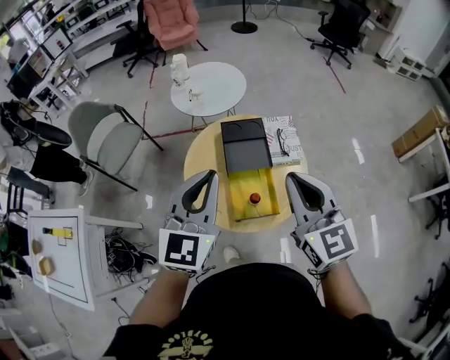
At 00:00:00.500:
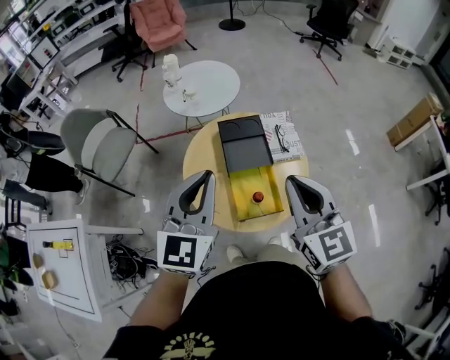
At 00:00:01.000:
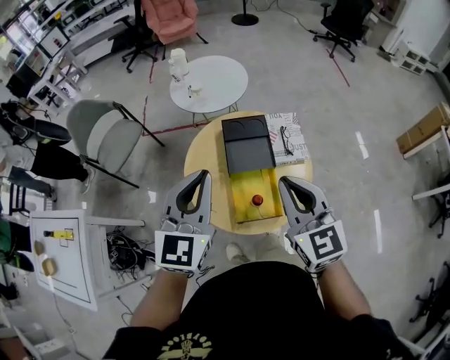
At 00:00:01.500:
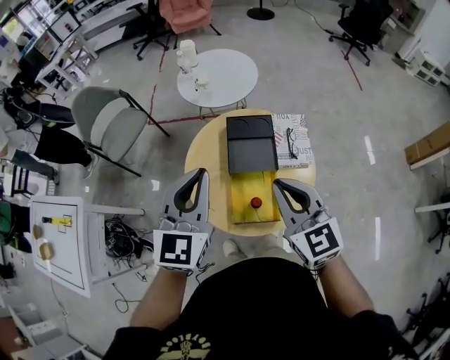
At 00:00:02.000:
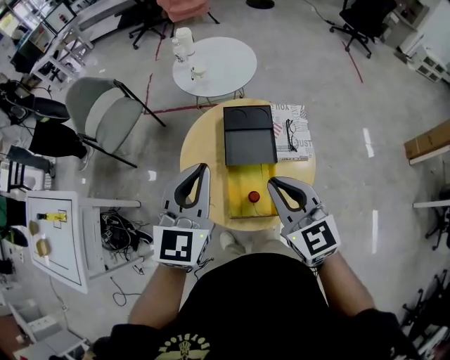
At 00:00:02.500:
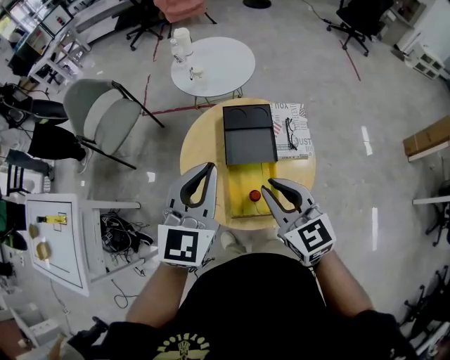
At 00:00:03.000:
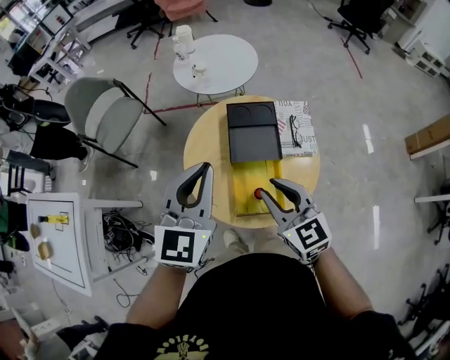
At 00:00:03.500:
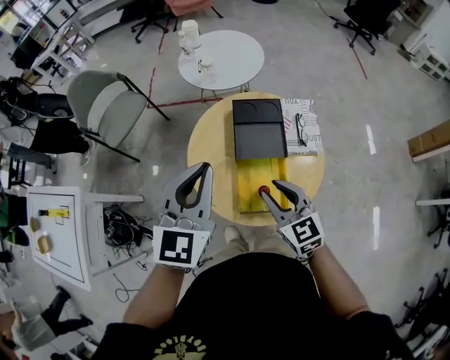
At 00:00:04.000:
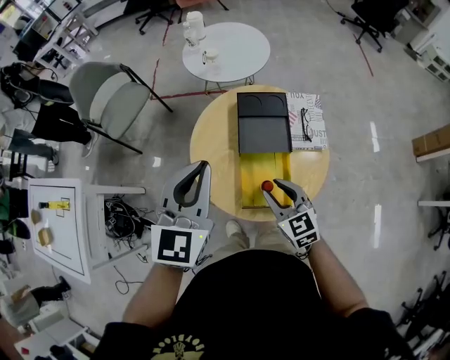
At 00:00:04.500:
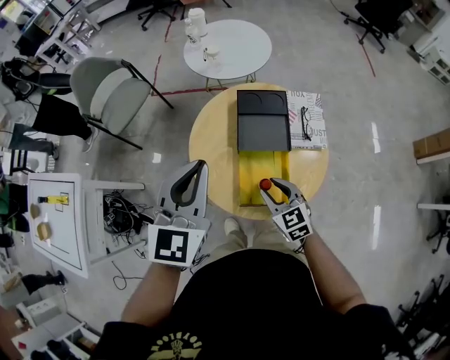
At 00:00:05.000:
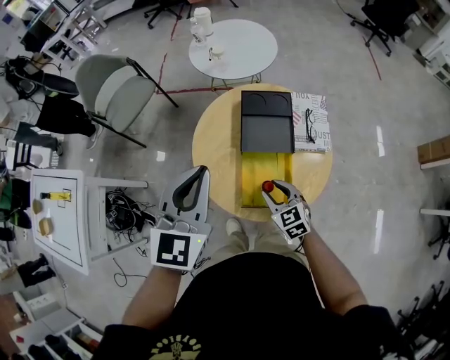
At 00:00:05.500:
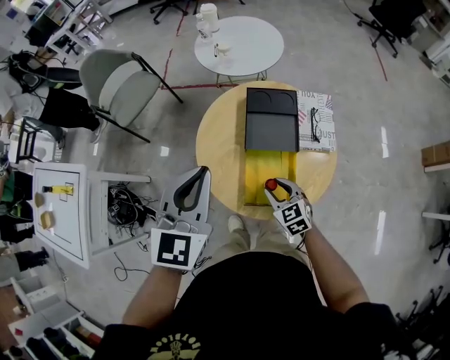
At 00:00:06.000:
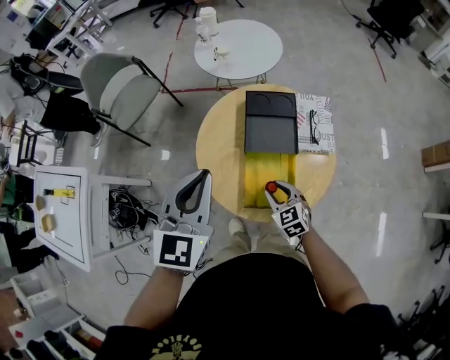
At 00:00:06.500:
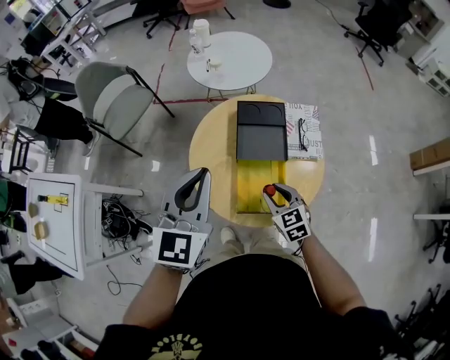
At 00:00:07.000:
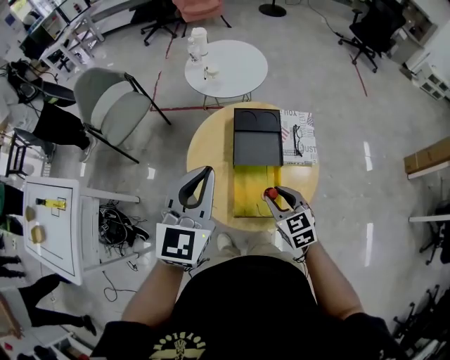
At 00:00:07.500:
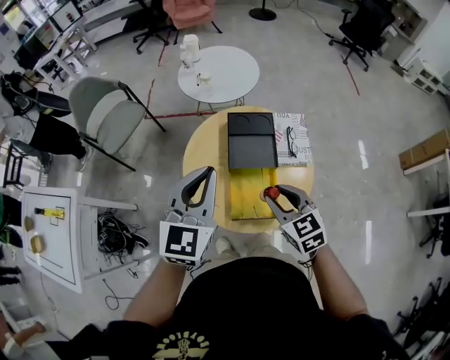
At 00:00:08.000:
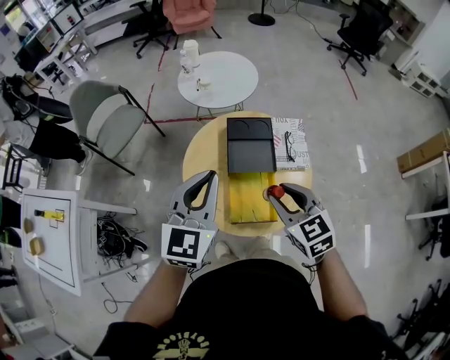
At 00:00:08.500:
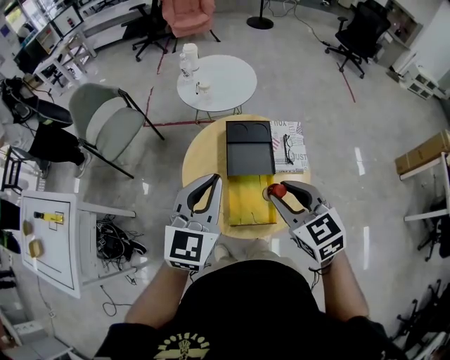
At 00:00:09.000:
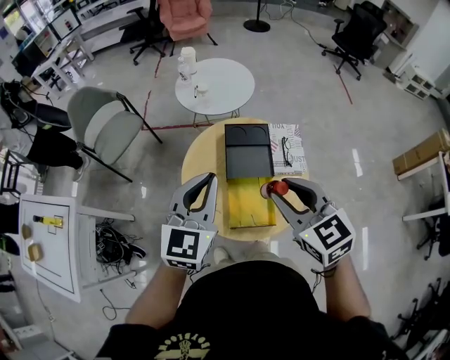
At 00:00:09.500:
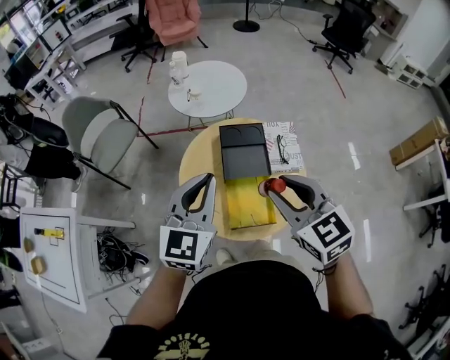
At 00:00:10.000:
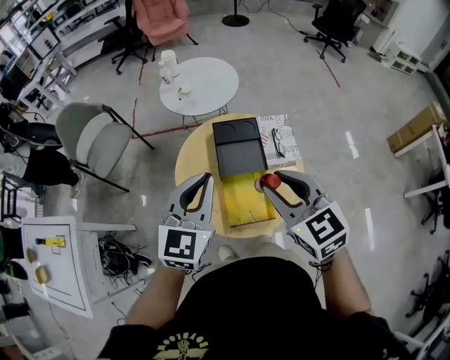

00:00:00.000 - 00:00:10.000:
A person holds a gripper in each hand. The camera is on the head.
00:00:00.000 - 00:00:02.000: The left gripper is displaced forward and downward by about 10 cm, while the right gripper is displaced downward and forward by about 10 cm.
00:00:02.000 - 00:00:04.000: The right gripper shifts roughly 15 cm downward, and opens up.
00:00:04.000 - 00:00:06.000: The right gripper travels downward by about 10 cm.
00:00:06.000 - 00:00:08.000: The right gripper shifts some 25 cm upward.
00:00:08.000 - 00:00:10.000: The right gripper goes roughly 10 cm upward.

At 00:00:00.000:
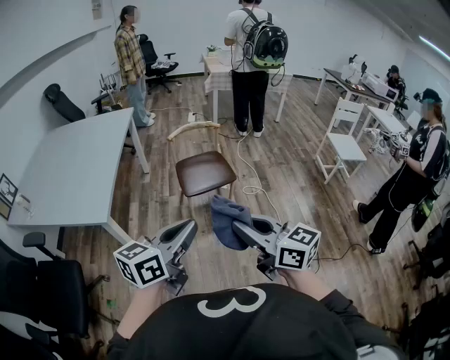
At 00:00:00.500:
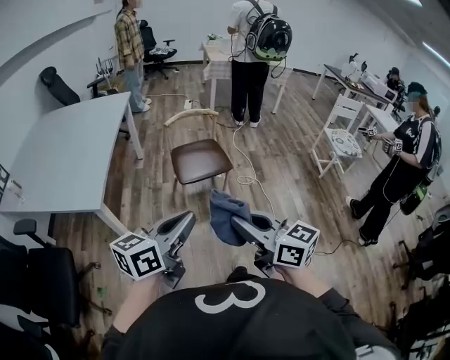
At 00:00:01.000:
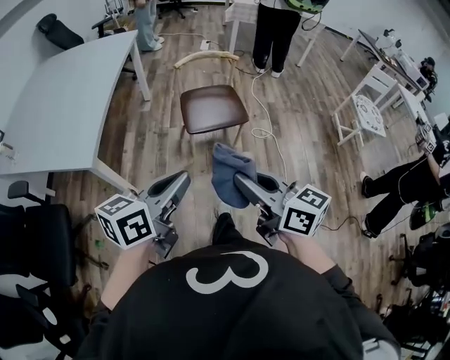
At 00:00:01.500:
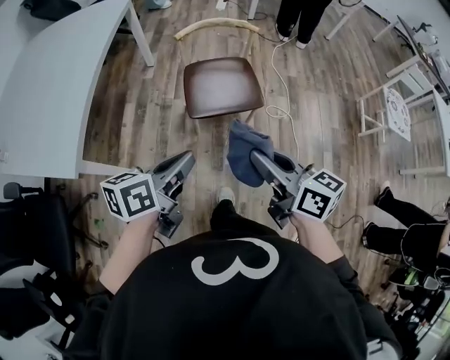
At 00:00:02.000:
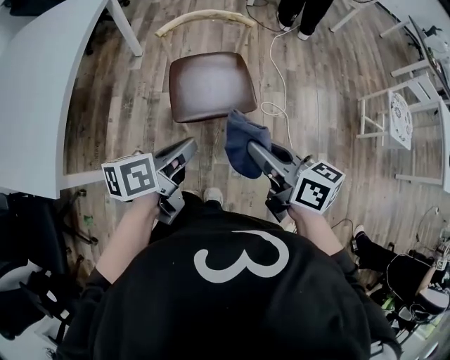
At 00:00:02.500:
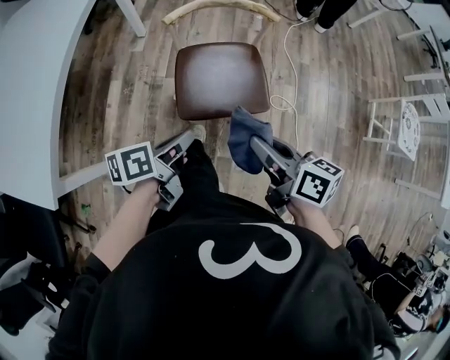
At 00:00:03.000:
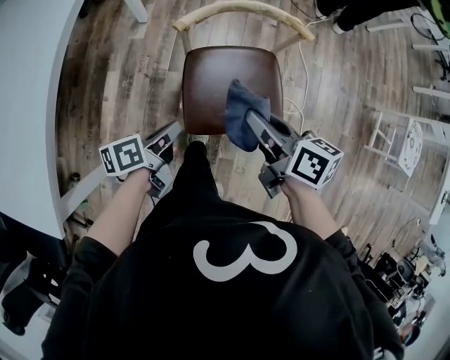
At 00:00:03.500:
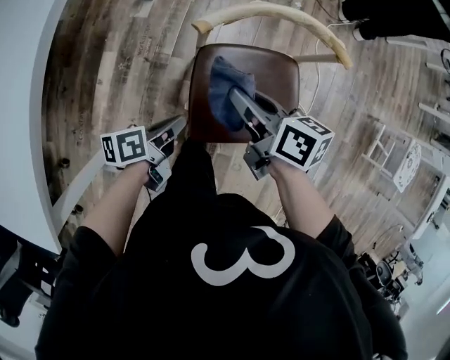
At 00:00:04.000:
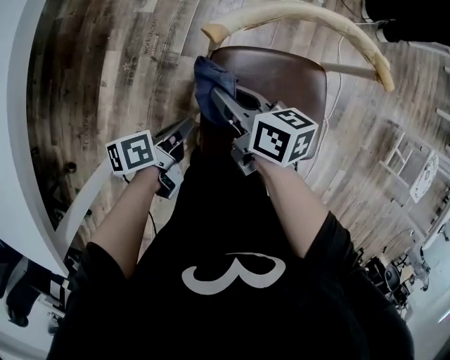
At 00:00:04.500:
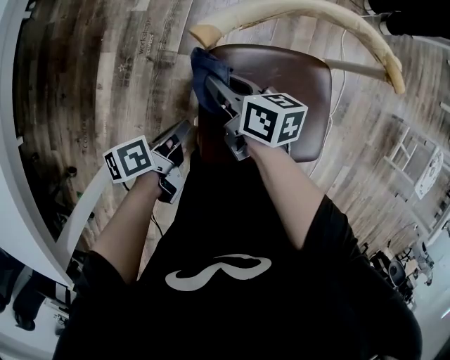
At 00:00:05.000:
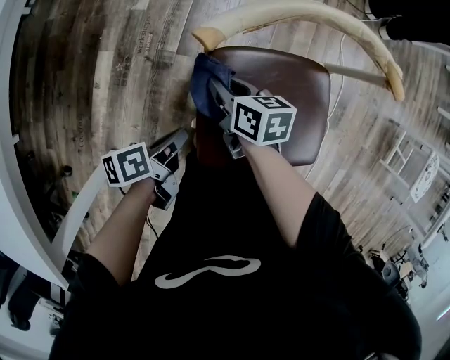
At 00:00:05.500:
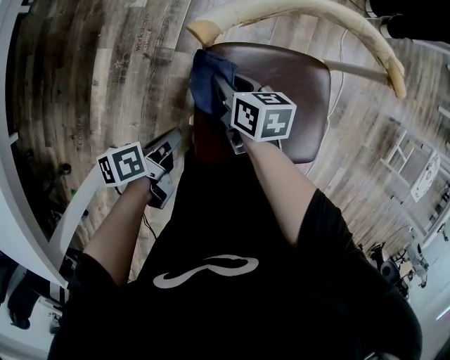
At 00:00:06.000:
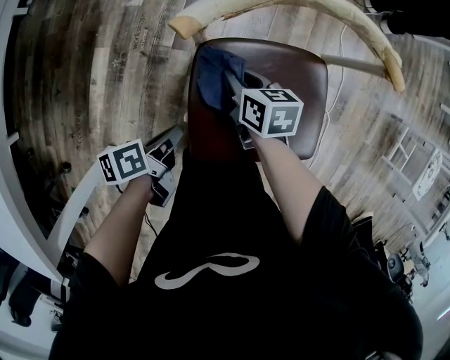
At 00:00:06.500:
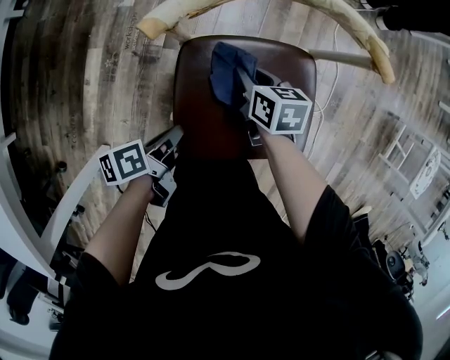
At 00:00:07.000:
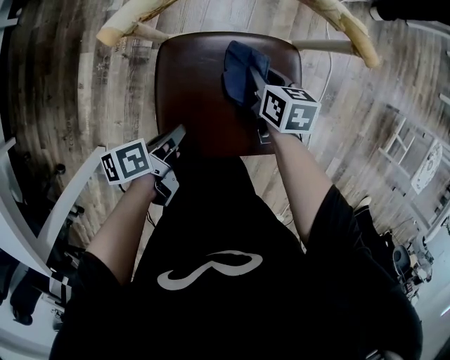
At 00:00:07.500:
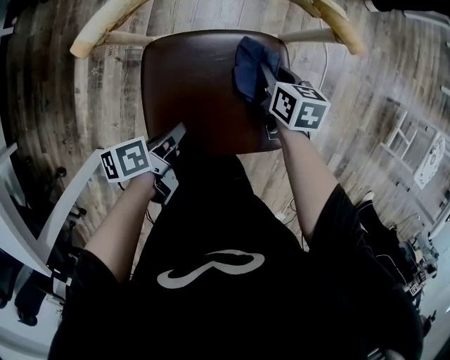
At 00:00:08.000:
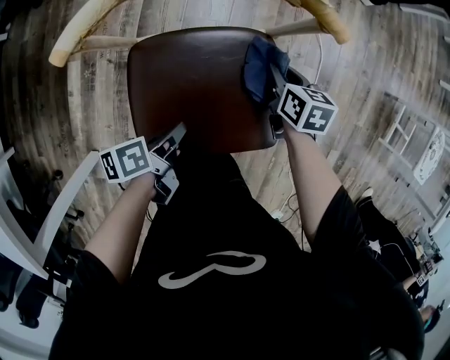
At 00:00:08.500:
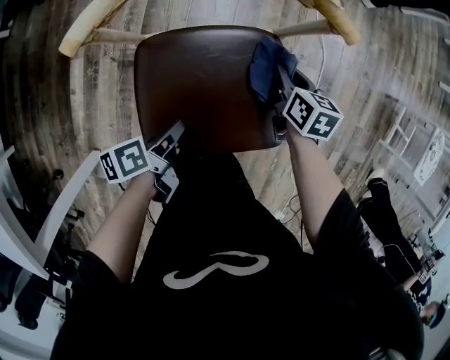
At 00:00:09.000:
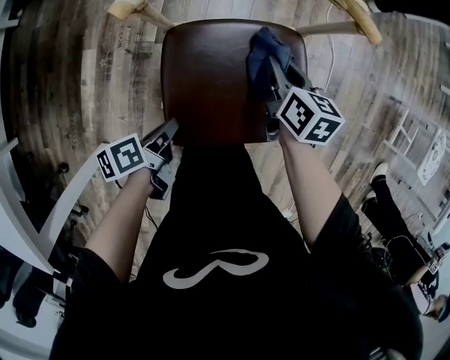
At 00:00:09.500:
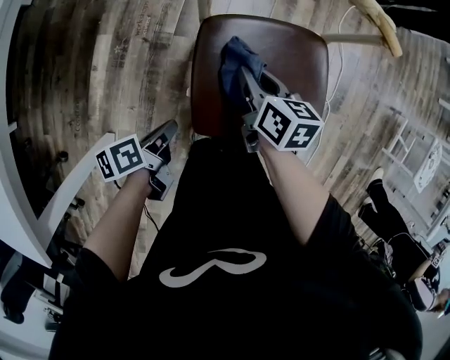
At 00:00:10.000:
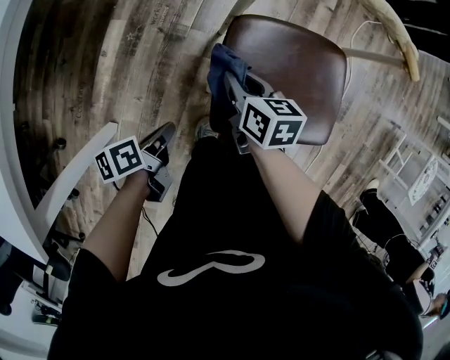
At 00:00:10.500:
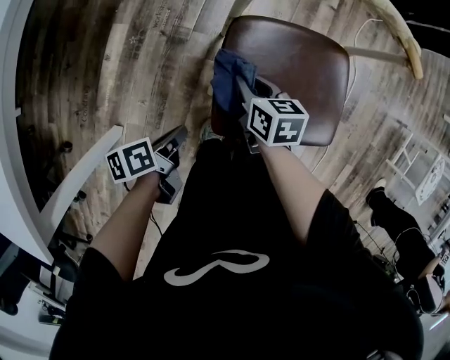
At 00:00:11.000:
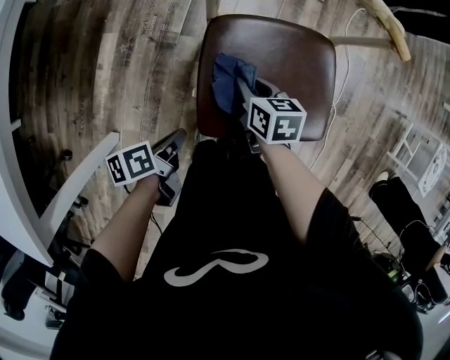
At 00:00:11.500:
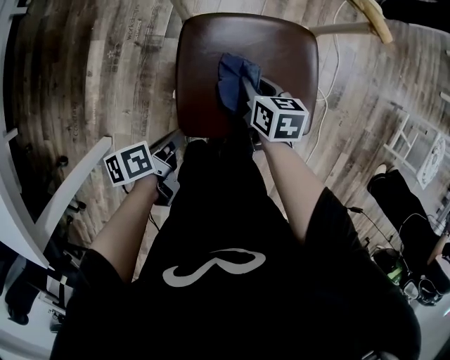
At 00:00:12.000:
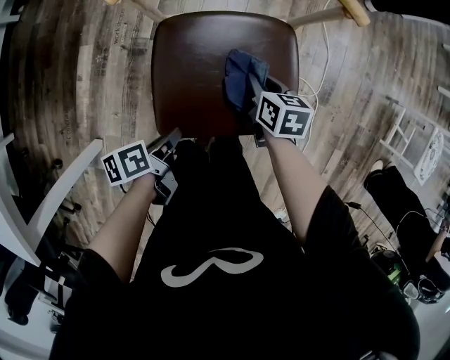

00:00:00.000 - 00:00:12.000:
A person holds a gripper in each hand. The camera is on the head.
00:00:00.000 - 00:00:02.000: The right gripper moves some 40 cm, and turns by roughly 30 degrees.
00:00:02.000 - 00:00:04.000: The right gripper shifts by some 50 cm.
00:00:04.000 - 00:00:06.000: The right gripper travels downward by about 10 cm.
00:00:06.000 - 00:00:08.000: The right gripper ends up about 25 cm from where it was.
00:00:08.000 - 00:00:10.000: The right gripper shifts by some 35 cm.
00:00:10.000 - 00:00:12.000: The right gripper ends up roughly 25 cm from where it was.

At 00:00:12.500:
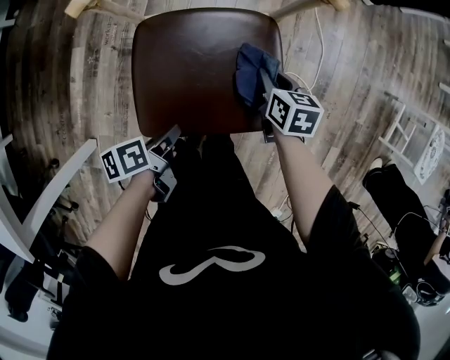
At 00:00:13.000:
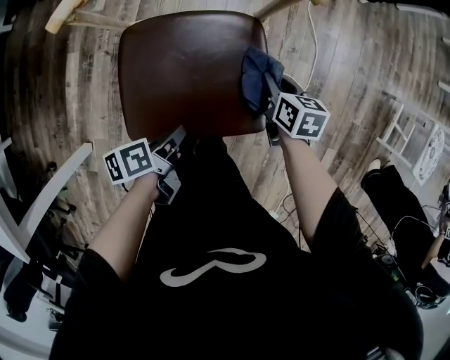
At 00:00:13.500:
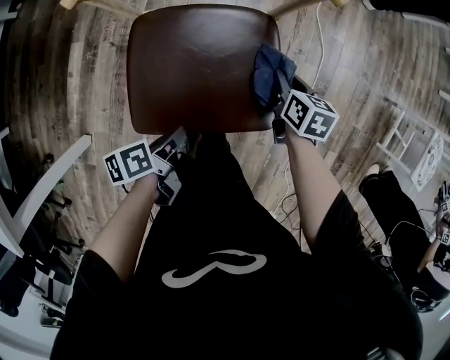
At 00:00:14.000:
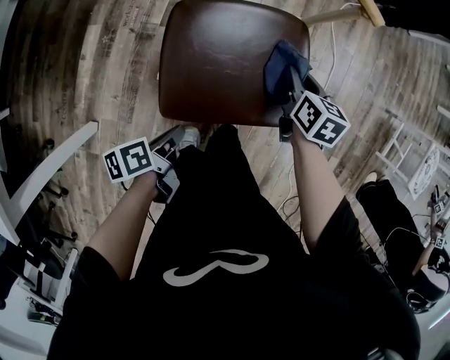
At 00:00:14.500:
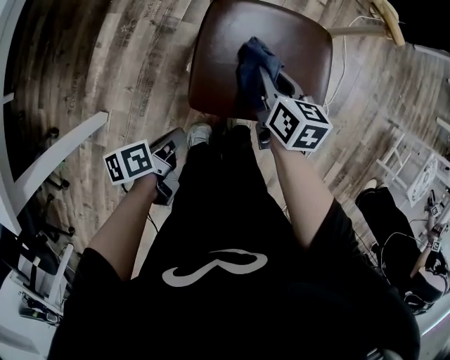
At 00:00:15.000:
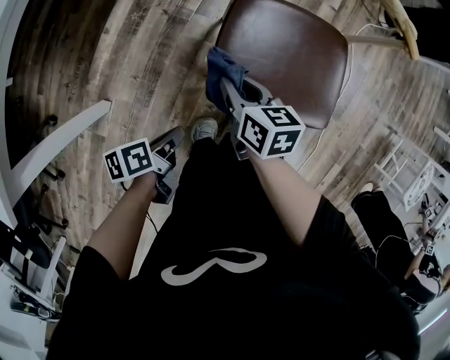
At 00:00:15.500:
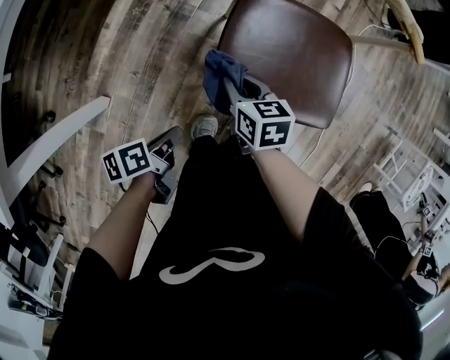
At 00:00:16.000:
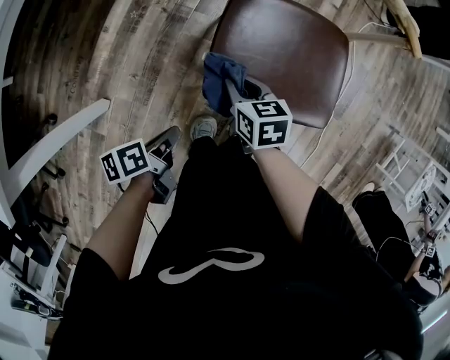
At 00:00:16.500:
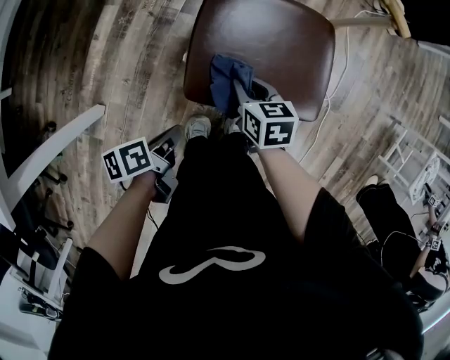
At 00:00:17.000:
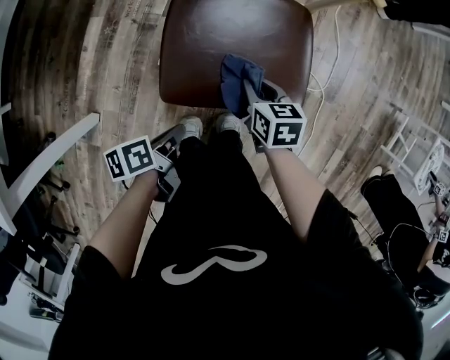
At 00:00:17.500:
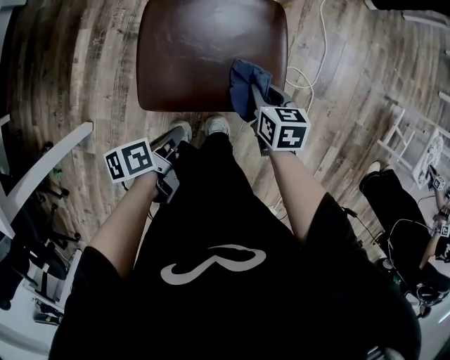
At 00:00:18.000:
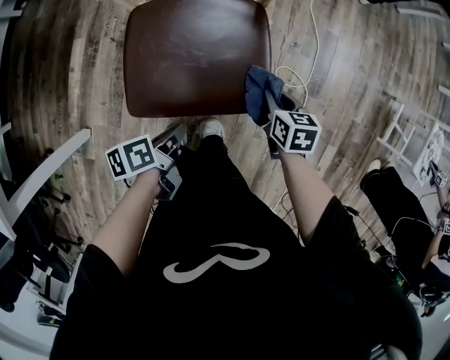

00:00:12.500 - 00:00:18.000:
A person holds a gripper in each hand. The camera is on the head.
00:00:12.500 - 00:00:14.500: The right gripper changes place by roughly 20 cm.
00:00:14.500 - 00:00:16.000: The right gripper moves some 15 cm.
00:00:16.000 - 00:00:18.000: The right gripper ends up roughly 30 cm from where it was.
